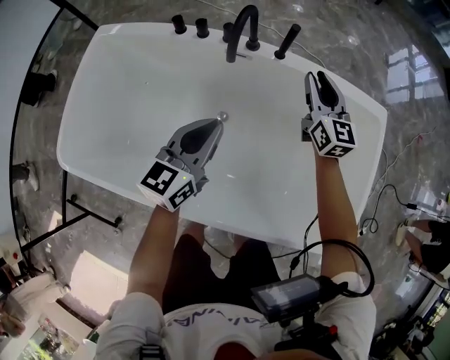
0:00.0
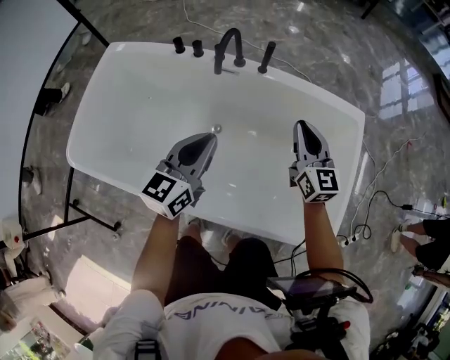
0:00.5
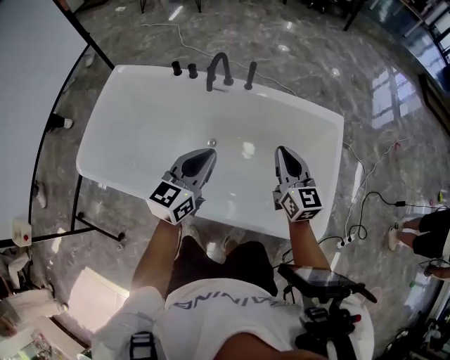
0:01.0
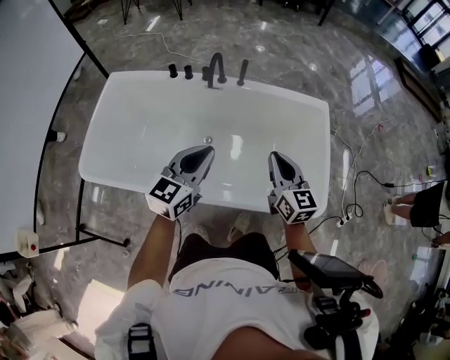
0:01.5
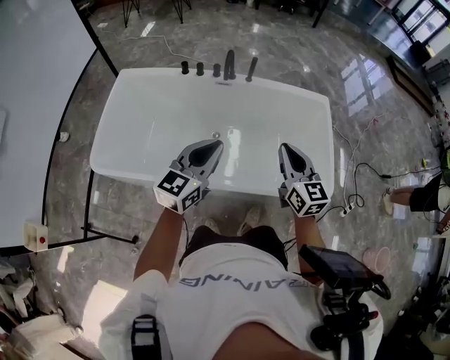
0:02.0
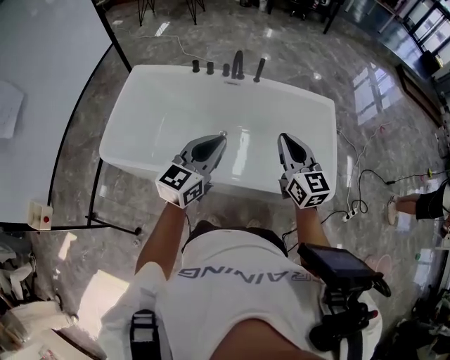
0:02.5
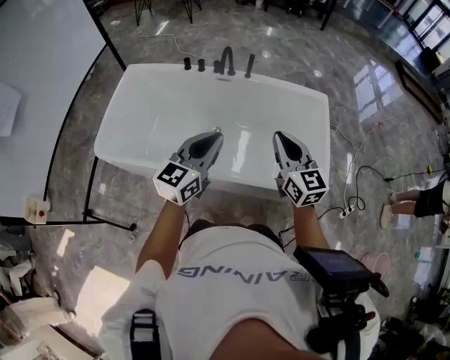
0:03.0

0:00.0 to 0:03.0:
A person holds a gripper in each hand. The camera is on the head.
0:00.0 to 0:01.5: The left gripper goes some 30 cm upward and backward, while the right gripper travels backward and upward by roughly 40 cm, and closes up.
0:01.5 to 0:03.0: The grippers both shift backward and upward by some 15 cm.

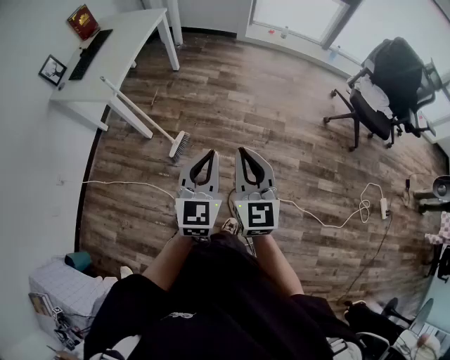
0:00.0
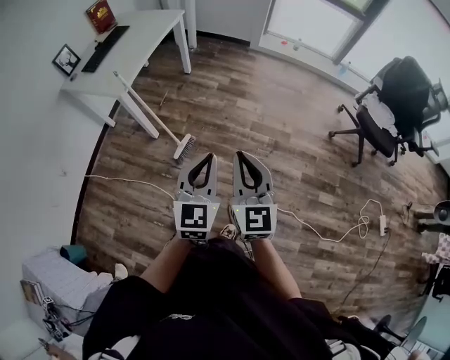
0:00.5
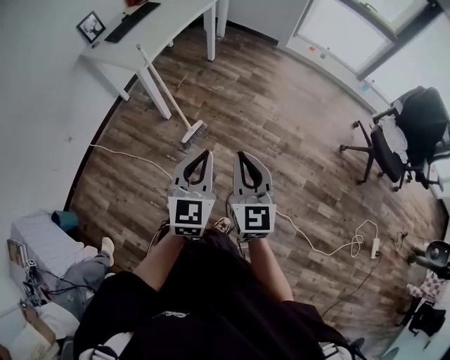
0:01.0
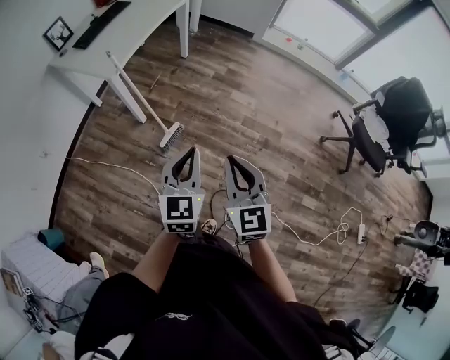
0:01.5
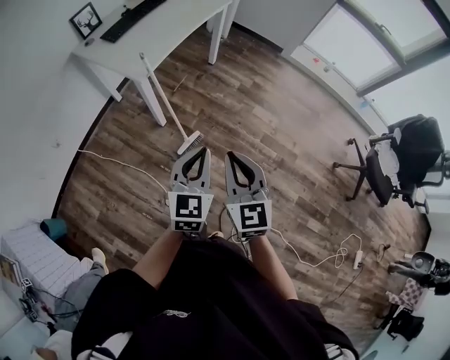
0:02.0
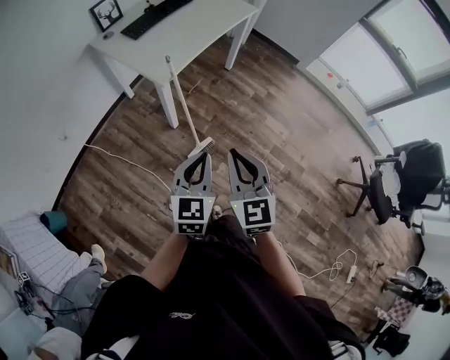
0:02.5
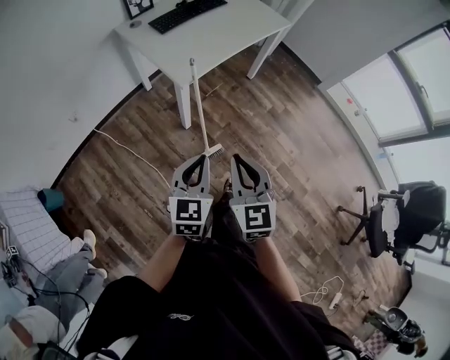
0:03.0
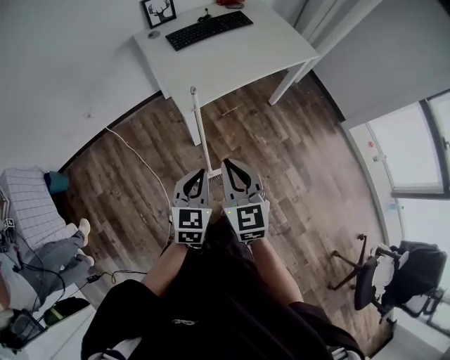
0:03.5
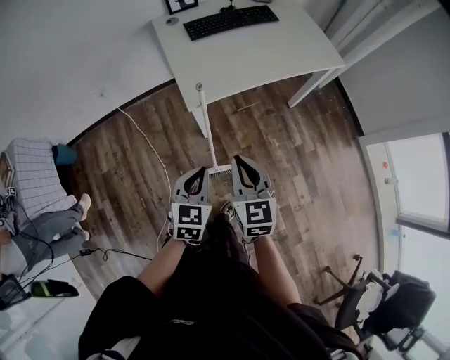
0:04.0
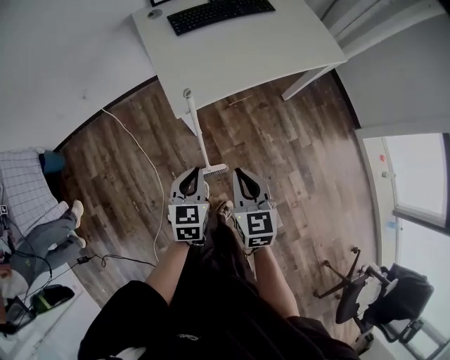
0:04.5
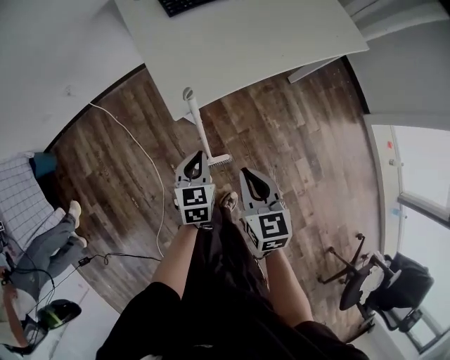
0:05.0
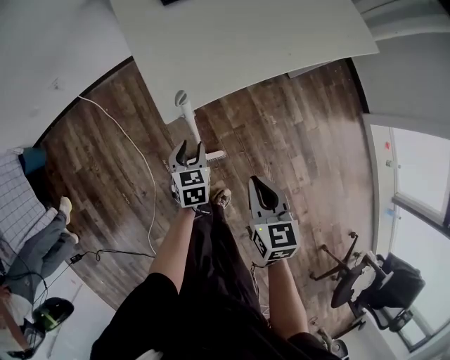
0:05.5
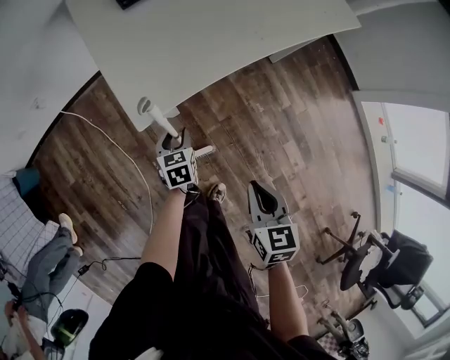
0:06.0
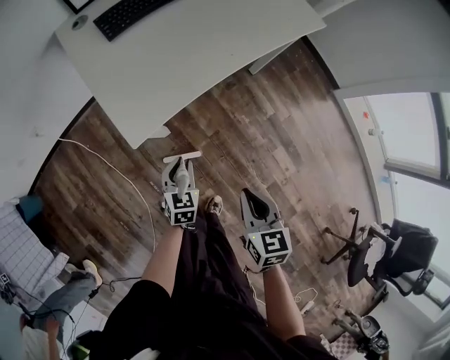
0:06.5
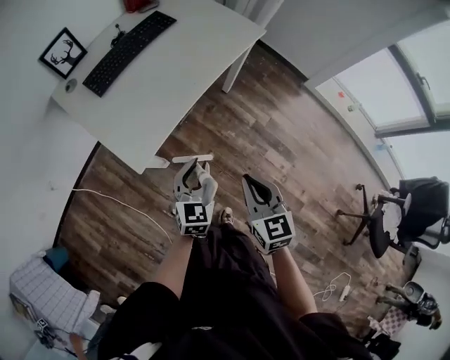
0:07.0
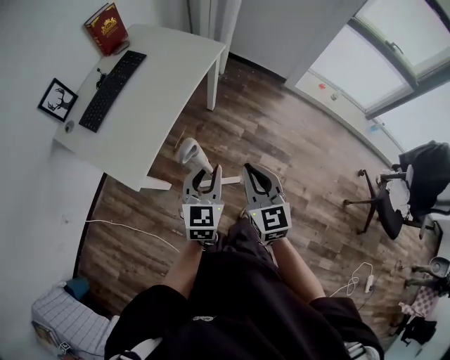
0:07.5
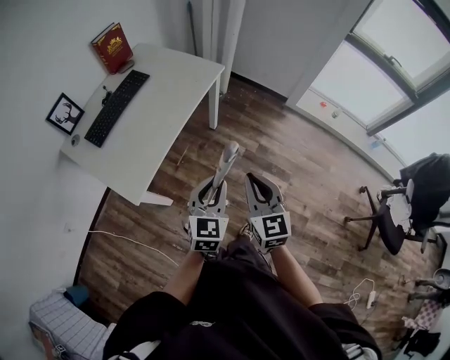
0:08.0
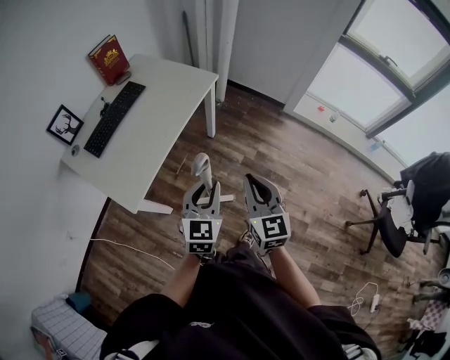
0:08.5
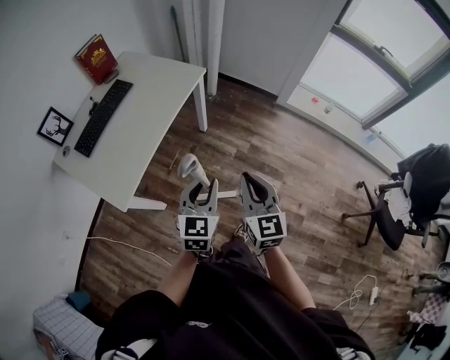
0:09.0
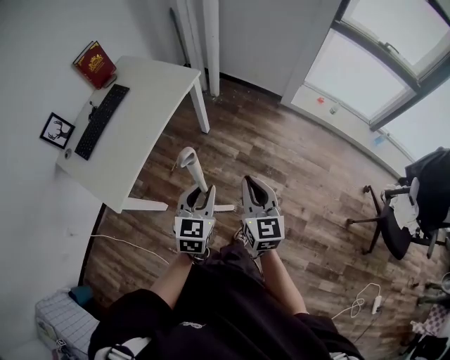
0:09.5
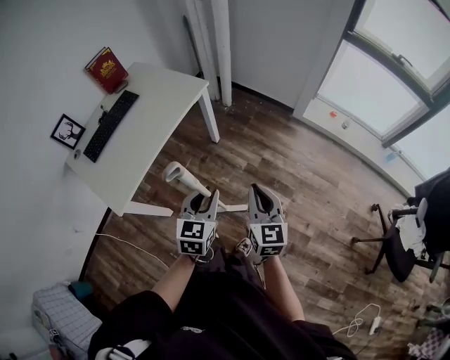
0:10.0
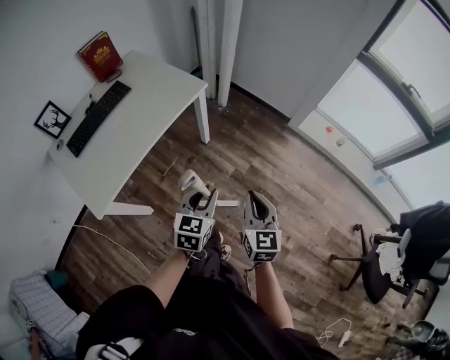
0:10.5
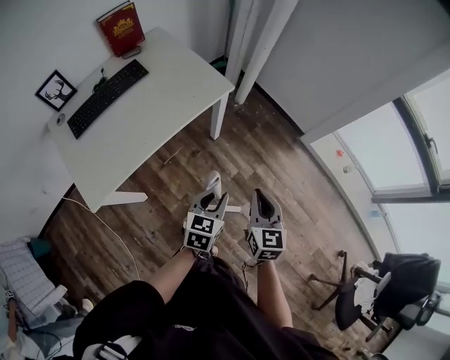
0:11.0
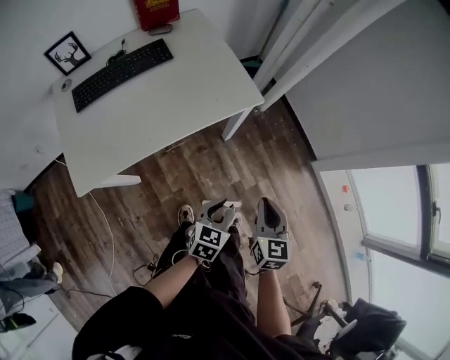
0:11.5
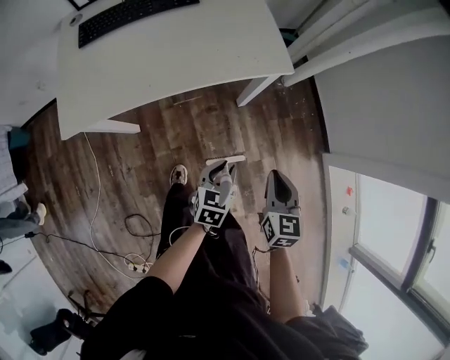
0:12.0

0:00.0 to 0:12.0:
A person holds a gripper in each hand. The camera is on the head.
0:00.0 to 0:02.0: The two grippers go some 20 cm to the left and forward. The right gripper rotates approximately 20 degrees.
0:02.0 to 0:04.0: The right gripper shifts by roughly 30 cm, and swivels some 40 degrees, while the left gripper ends up some 25 cm from where it was, and rotates about 40 degrees.
0:04.0 to 0:06.0: The right gripper is displaced downward by approximately 20 cm, and rotates roughly 30 degrees, while the left gripper moves downward and forward, about 40 cm, rotates roughly 20 degrees, and opens its fingers.
0:06.0 to 0:08.0: The left gripper heads upward, covering about 40 cm, swivels about 60 degrees, and closes its fingers; the right gripper travels upward by approximately 25 cm, and turns by about 40 degrees.
0:08.0 to 0:10.0: Both grippers move to the right, approximately 15 cm.
0:10.0 to 0:12.0: The right gripper changes place by roughly 35 cm, and swivels some 40 degrees, while the left gripper changes place by approximately 35 cm, and changes its angle by about 40 degrees.

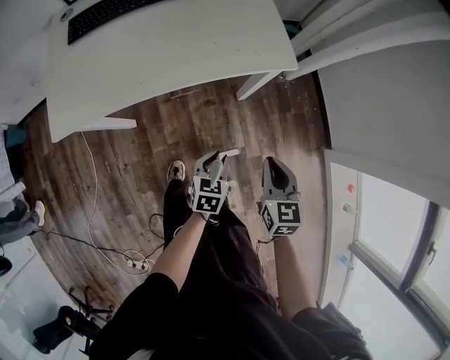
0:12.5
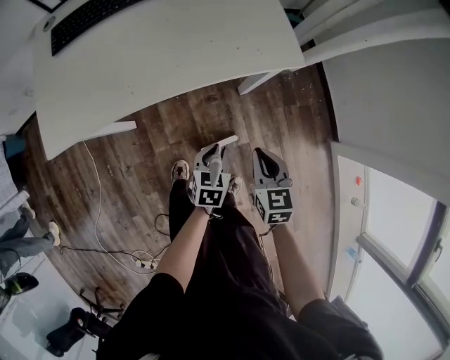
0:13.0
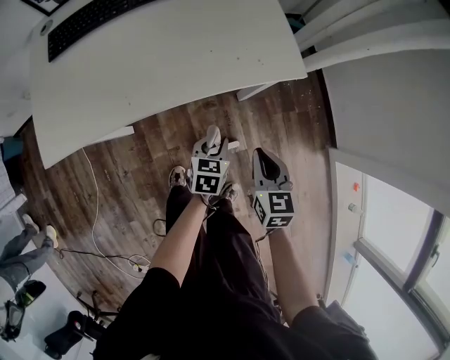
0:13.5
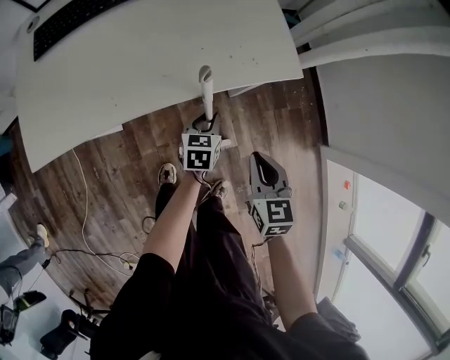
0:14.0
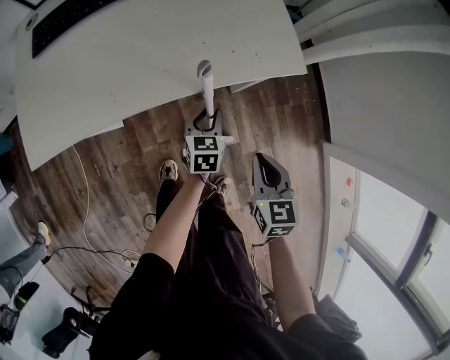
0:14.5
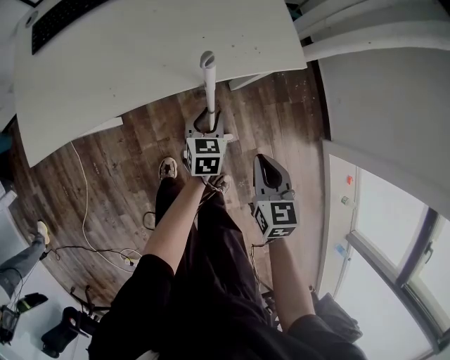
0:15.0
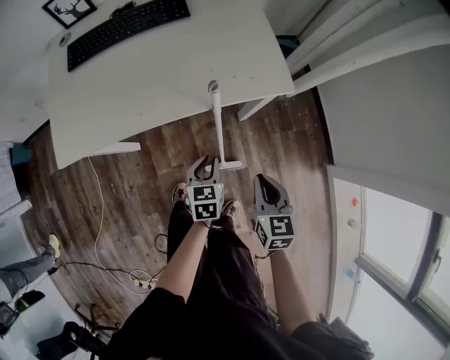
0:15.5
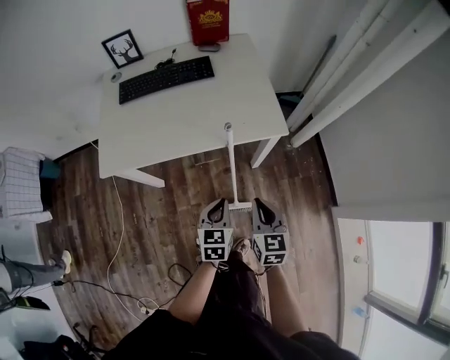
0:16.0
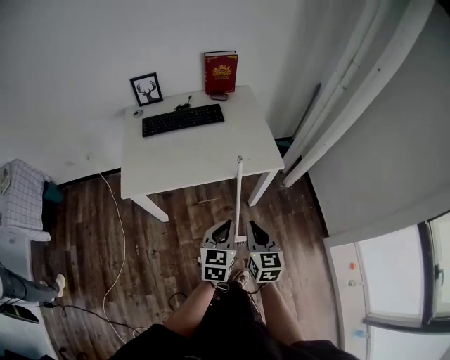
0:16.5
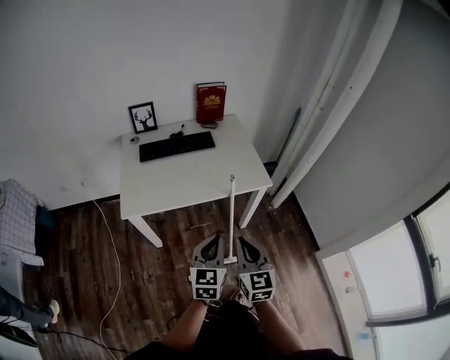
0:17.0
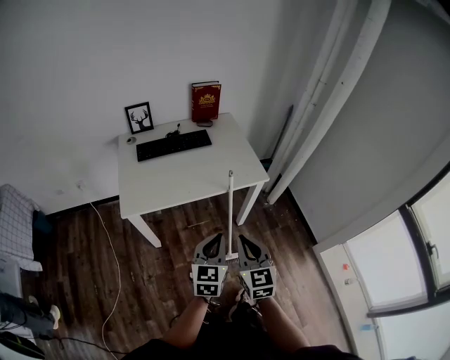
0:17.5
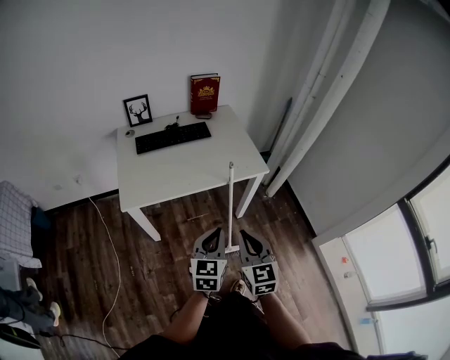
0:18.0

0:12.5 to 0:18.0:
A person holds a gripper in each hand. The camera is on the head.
0:12.5 to 0:14.5: The left gripper travels forward by about 15 cm. The right gripper travels forward and downward by approximately 10 cm.
0:14.5 to 0:16.0: The left gripper is displaced upward and backward by about 25 cm, and closes up, while the right gripper is displaced upward by approximately 15 cm.
0:16.0 to 0:18.0: The two grippers go some 25 cm upward, backward and to the left. The left gripper swivels approximately 20 degrees.

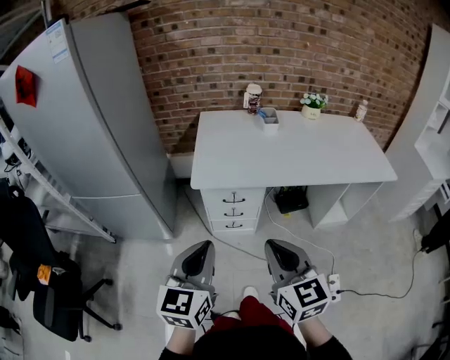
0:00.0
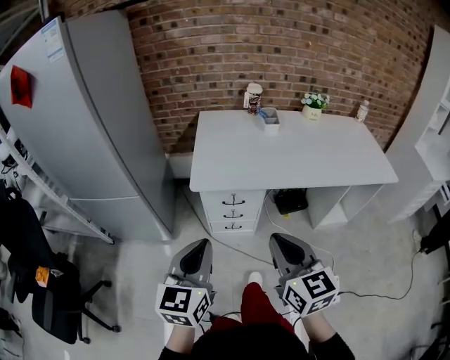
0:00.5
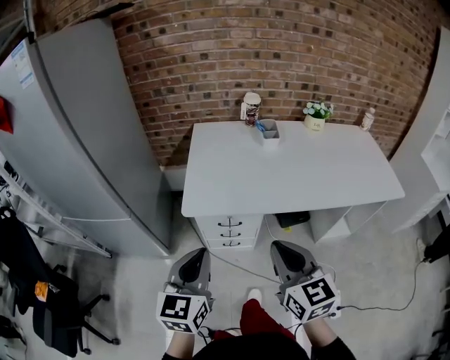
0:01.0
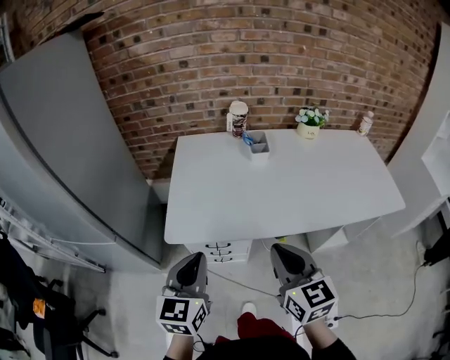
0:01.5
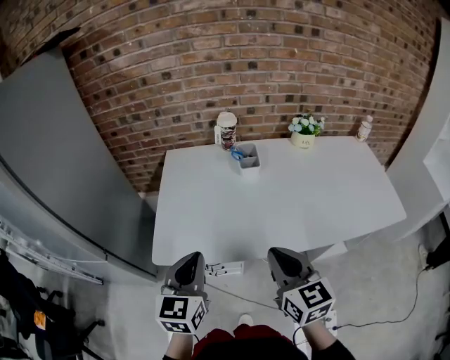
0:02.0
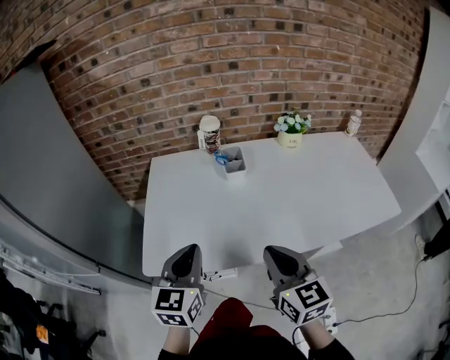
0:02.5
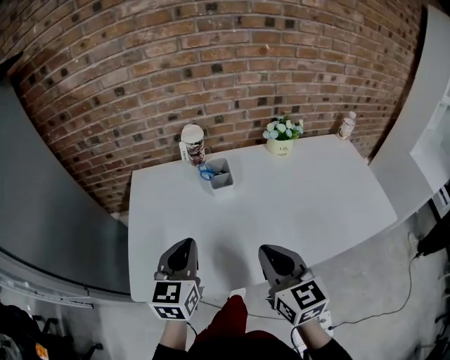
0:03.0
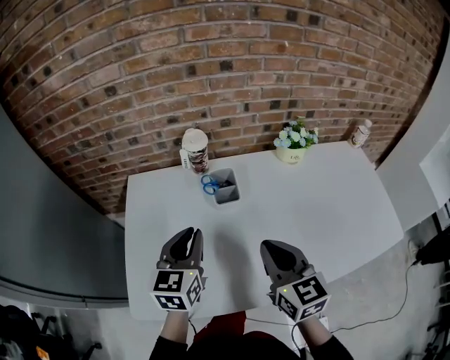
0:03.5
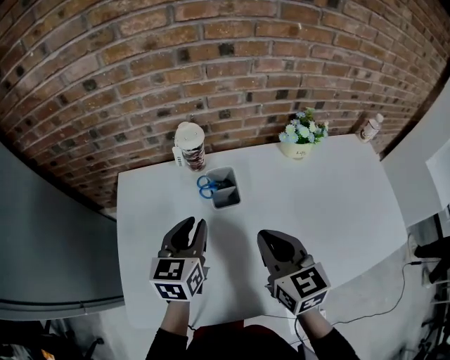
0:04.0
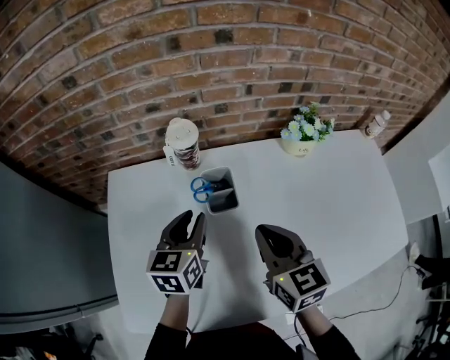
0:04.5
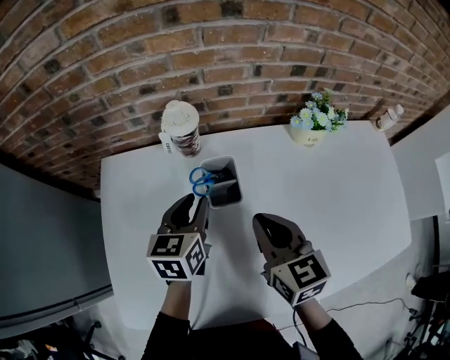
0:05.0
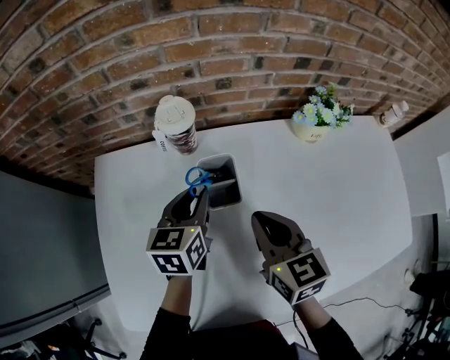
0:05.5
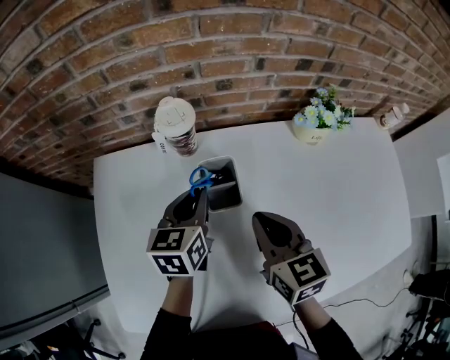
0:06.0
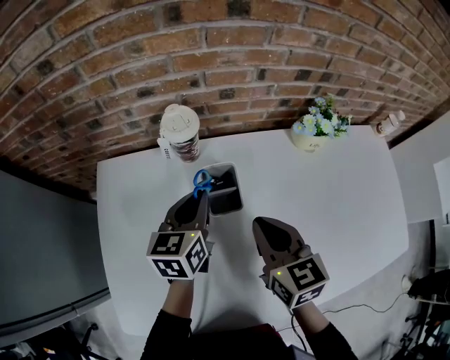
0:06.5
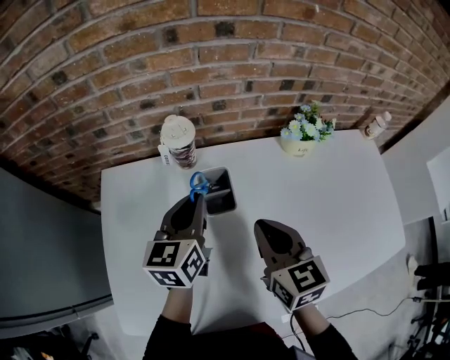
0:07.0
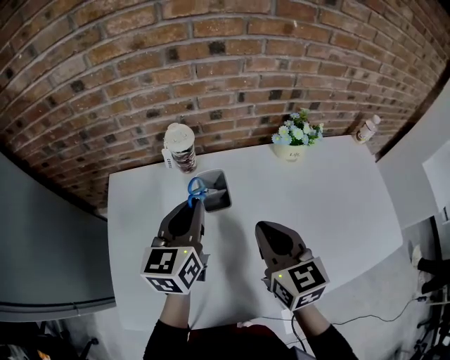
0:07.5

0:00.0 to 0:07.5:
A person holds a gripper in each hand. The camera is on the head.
0:00.0 to 0:02.0: The left gripper heads forward, covering approximately 30 cm. Meanwhile the right gripper heads forward and to the right, covering about 30 cm.
0:02.0 to 0:04.0: Both grippers travel together forward, about 30 cm. The left gripper opens.
0:04.0 to 0:05.5: Both grippers travel together forward and downward, approximately 10 cm.
0:05.5 to 0:07.5: The right gripper moves upward and backward, approximately 10 cm. The left gripper goes roughly 15 cm upward and backward.
